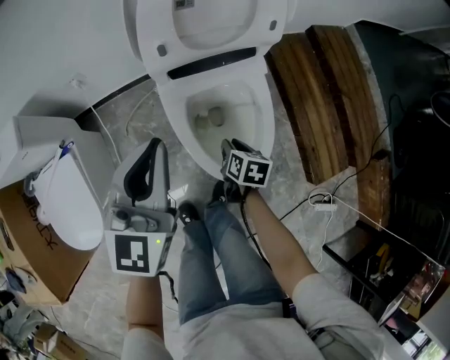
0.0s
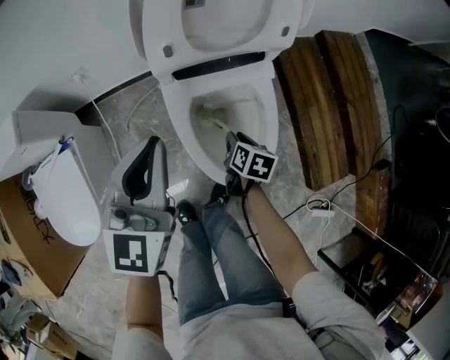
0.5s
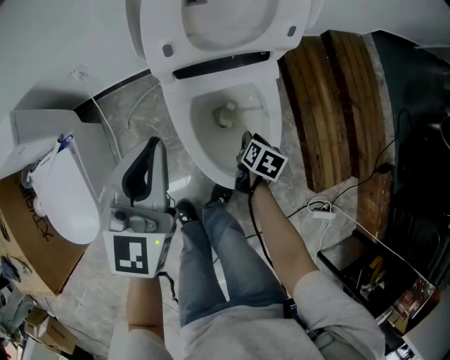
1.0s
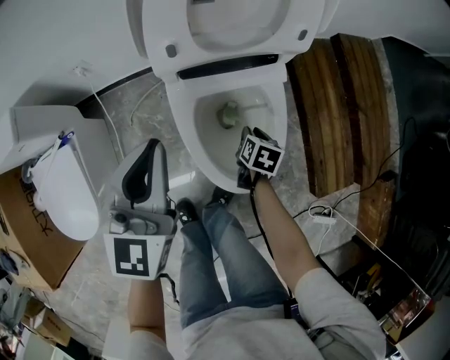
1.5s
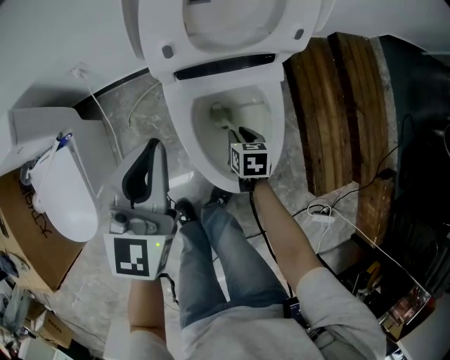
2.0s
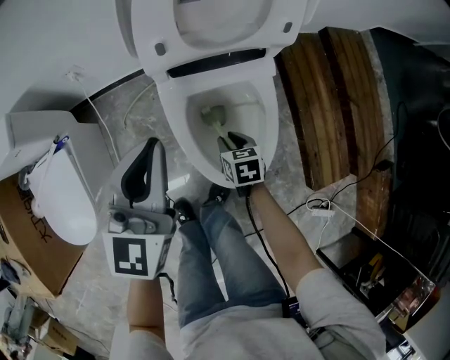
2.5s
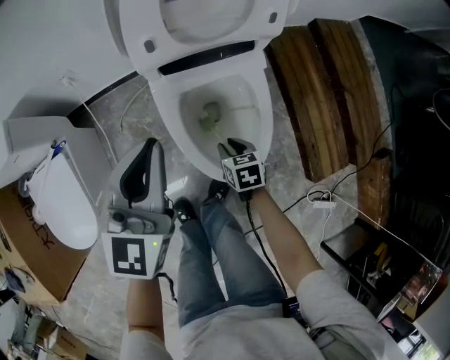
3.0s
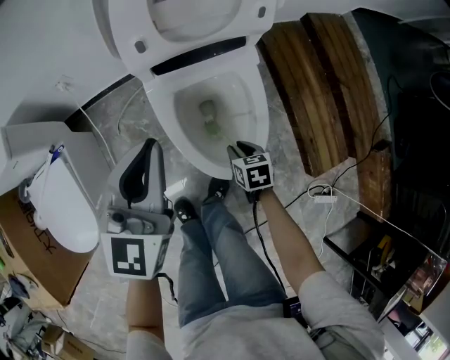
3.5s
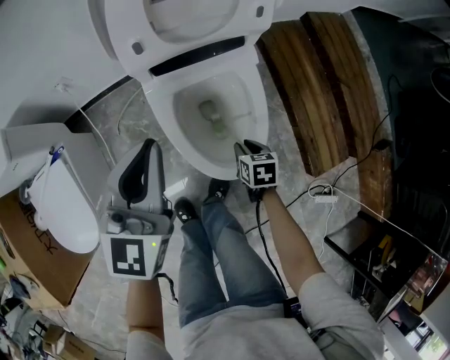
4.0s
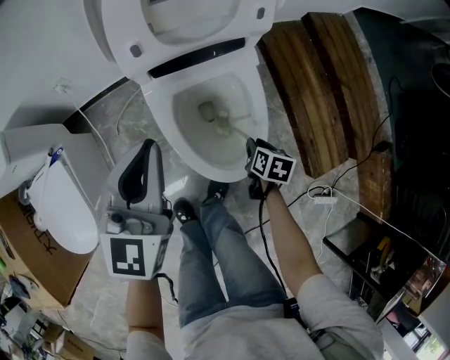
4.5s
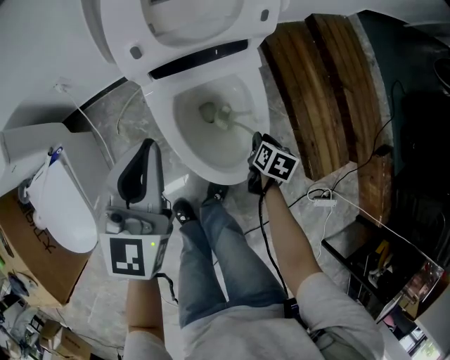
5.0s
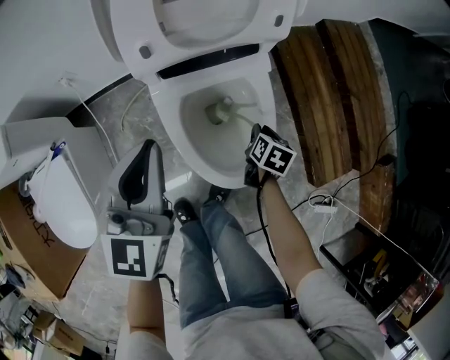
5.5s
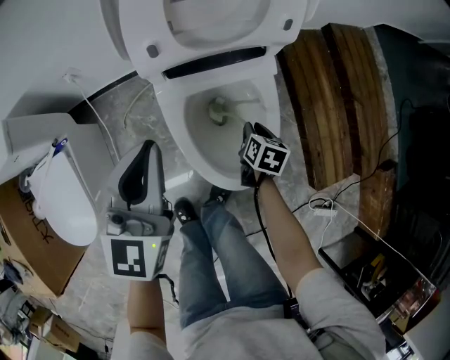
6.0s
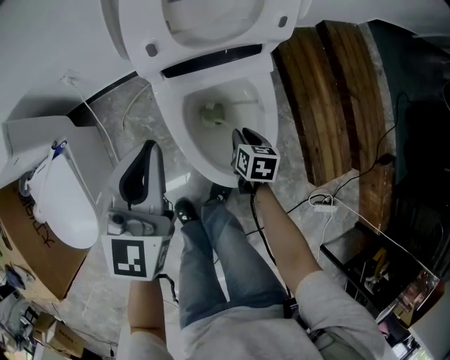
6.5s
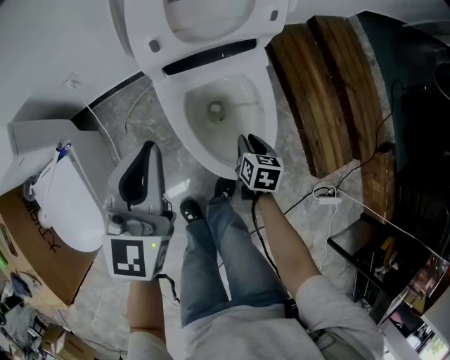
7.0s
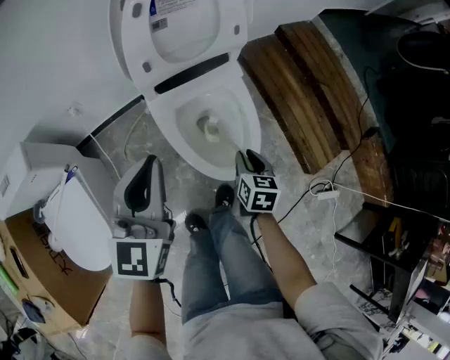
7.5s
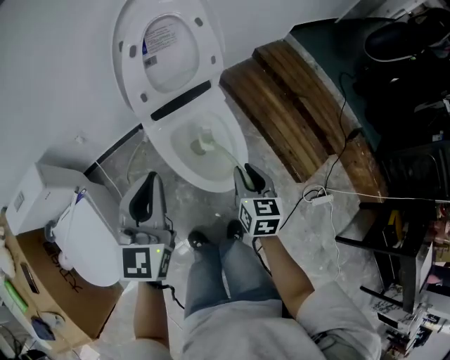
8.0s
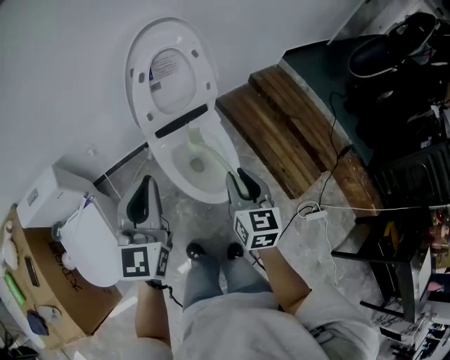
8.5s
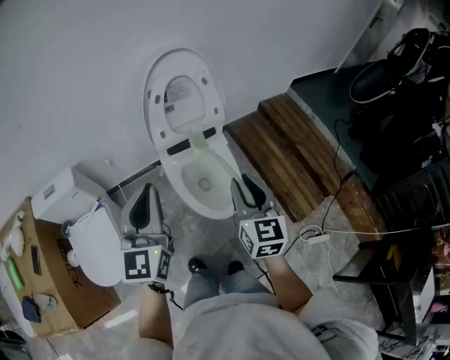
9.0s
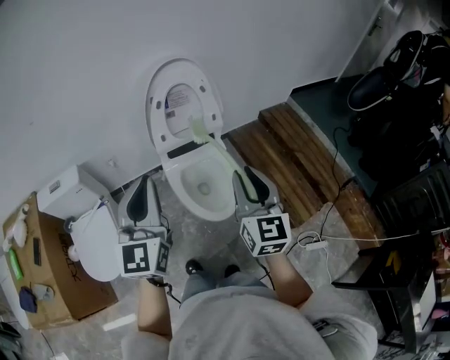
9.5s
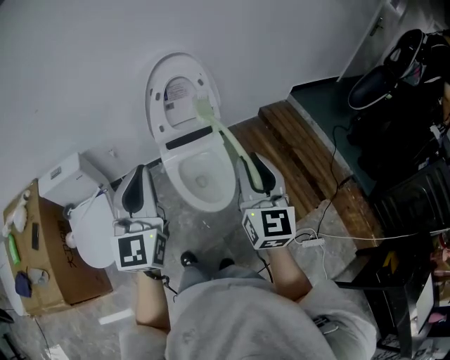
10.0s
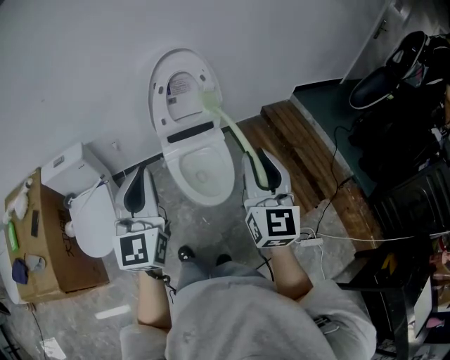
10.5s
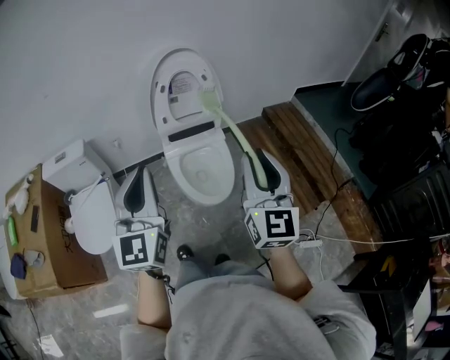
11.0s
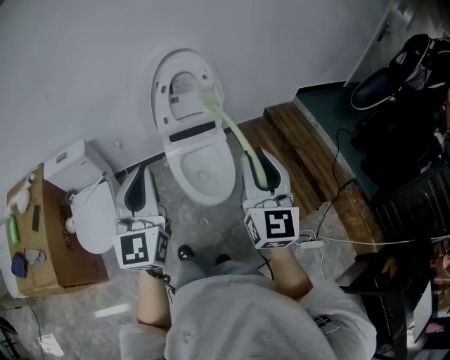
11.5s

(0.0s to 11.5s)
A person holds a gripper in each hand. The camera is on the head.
0.0s - 2.0s: The left gripper shifts by approximately 5 cm. The right gripper heads forward, covering some 5 cm, and swivels roughly 20 degrees.
2.0s - 4.0s: The right gripper goes about 10 cm backward and to the right.
4.0s - 6.0s: The right gripper travels forward by some 10 cm.
6.0s - 7.5s: The left gripper moves backward and upward, approximately 10 cm, while the right gripper travels backward and upward by approximately 20 cm.
7.5s - 9.5s: The left gripper goes some 30 cm upward and backward, and turns by about 20 degrees. Meanwhile the right gripper shifts some 50 cm upward, and points its fingers some 40 degrees further upward.
9.5s - 11.5s: The left gripper travels backward by about 10 cm. The right gripper moves backward, upward and to the right, approximately 15 cm.

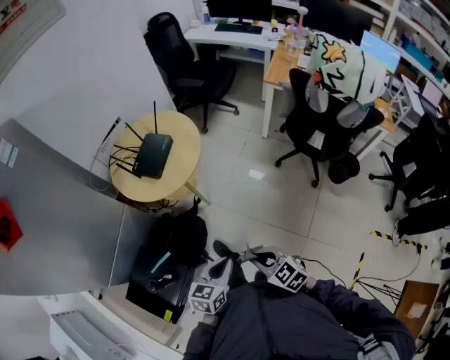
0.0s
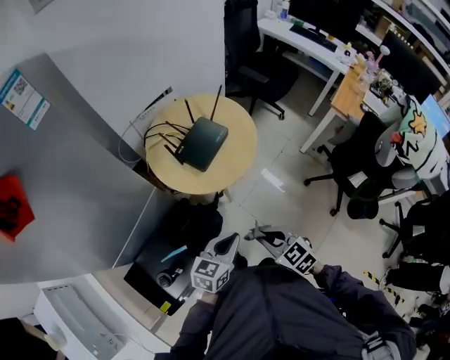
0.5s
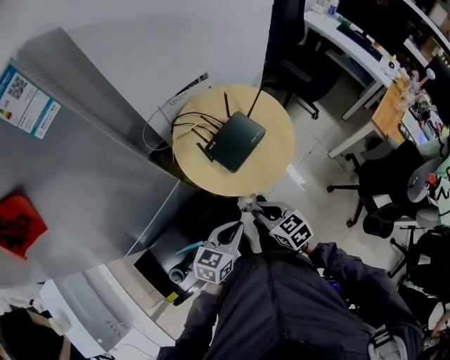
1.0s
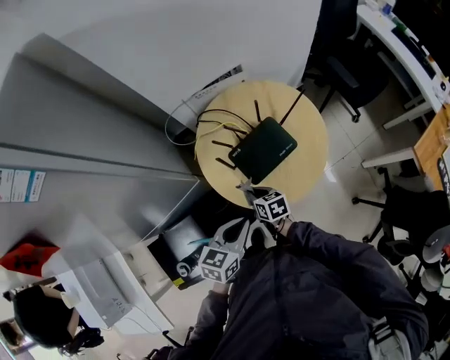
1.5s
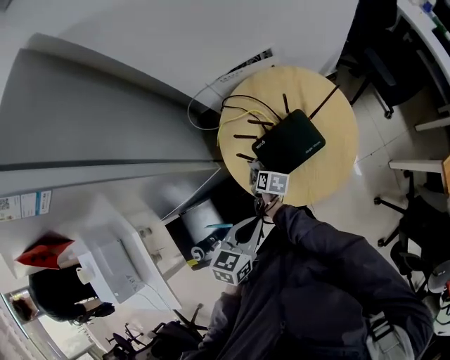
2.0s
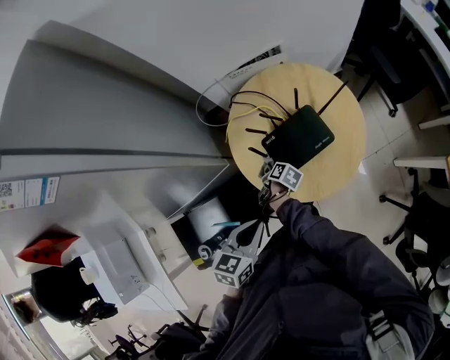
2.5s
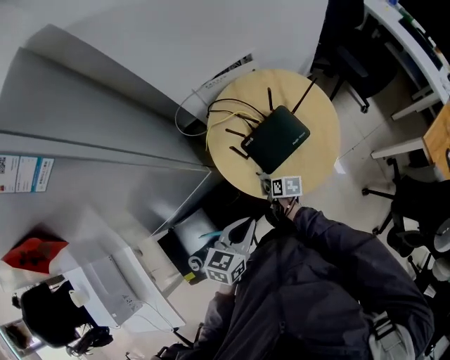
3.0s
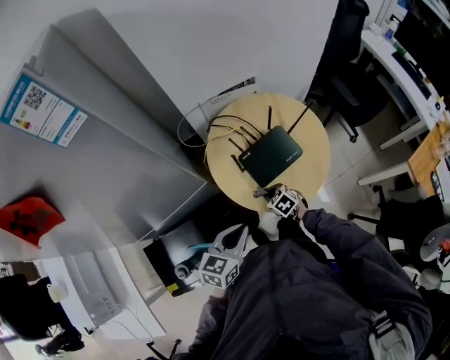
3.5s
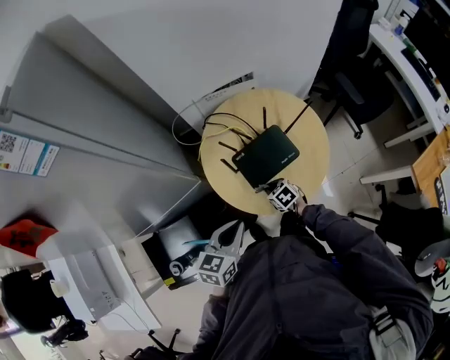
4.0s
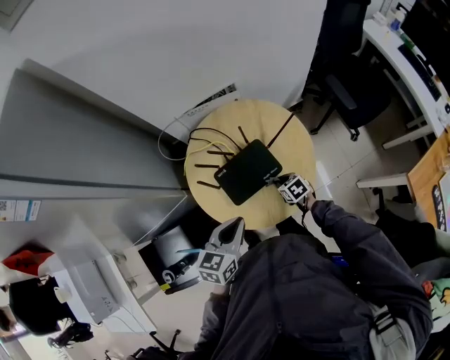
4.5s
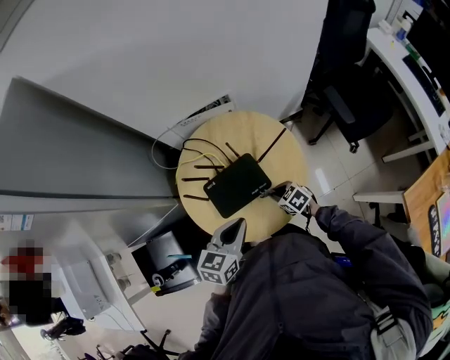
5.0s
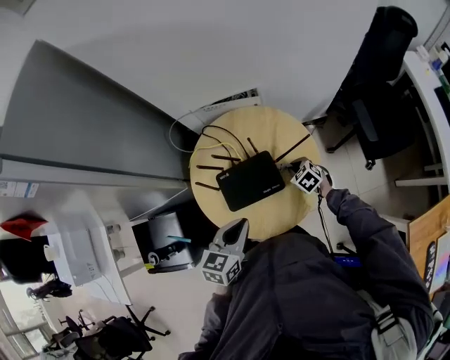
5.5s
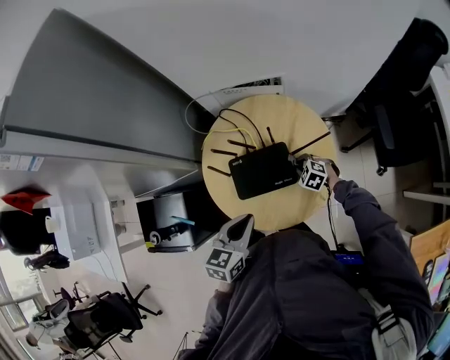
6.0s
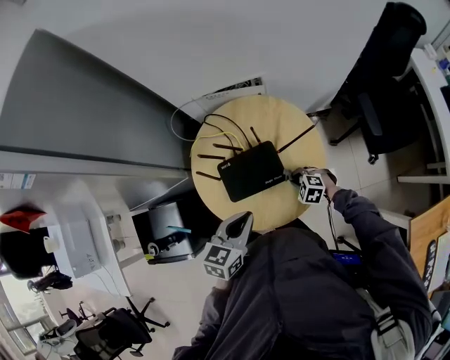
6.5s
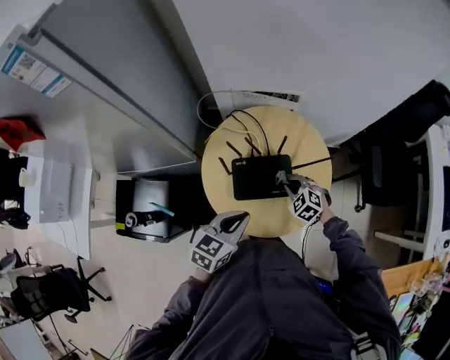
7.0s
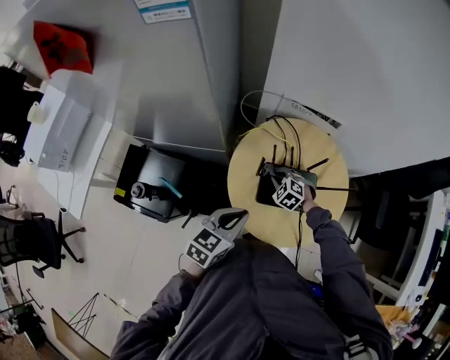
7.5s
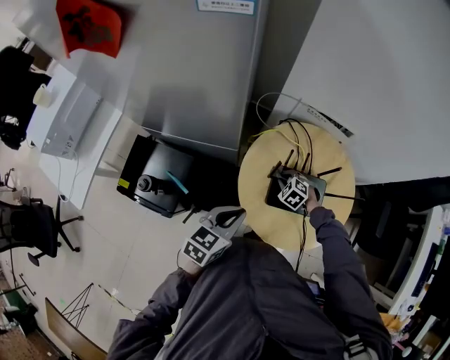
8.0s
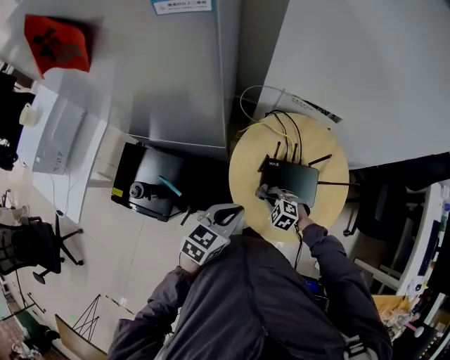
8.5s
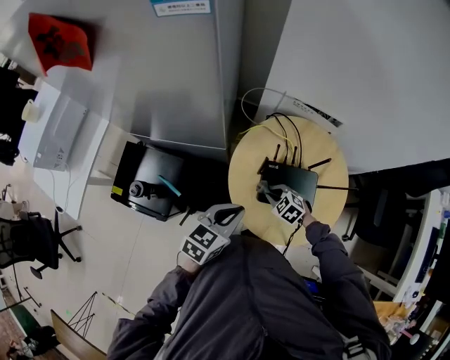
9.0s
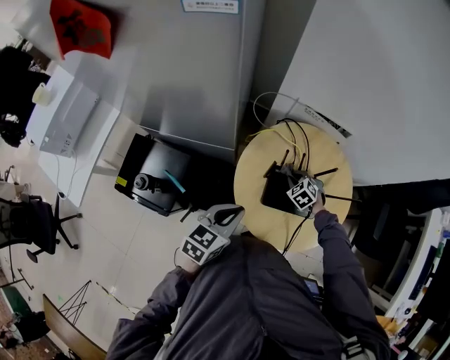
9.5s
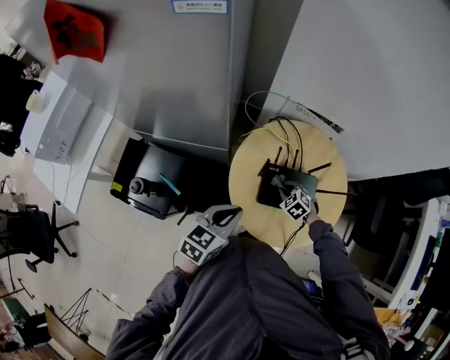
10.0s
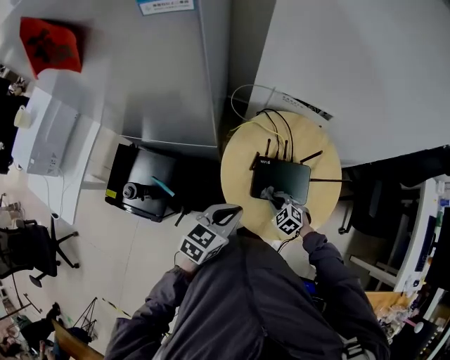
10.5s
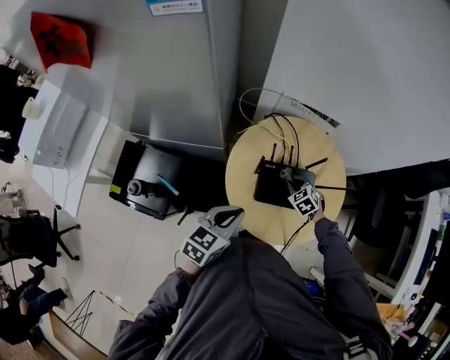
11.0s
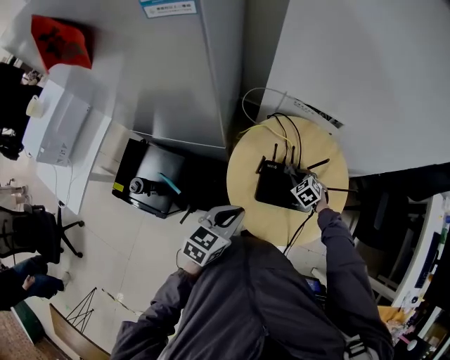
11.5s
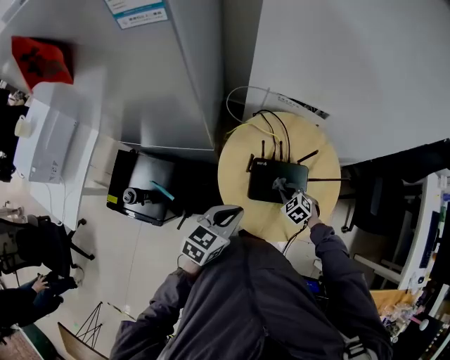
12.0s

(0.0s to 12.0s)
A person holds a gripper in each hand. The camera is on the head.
0.0s - 2.0s: The two grippers travel together, some 50 cm. The left gripper rotates roughly 40 degrees. Meanwhile the right gripper rotates around the line of its fingers by about 50 degrees, clockwise from behind.
2.0s - 4.0s: The right gripper travels to the right by some 10 cm, and rolls counterclockwise, seen from behind, by some 60 degrees.
4.0s - 6.0s: The right gripper is displaced to the right and forward by about 20 cm, and twists about 50 degrees counterclockwise, seen from behind; the left gripper shifts about 15 cm to the right.
6.0s - 8.0s: The grippers both shift to the left by approximately 20 cm.
8.0s - 10.0s: The right gripper moves forward and backward over approximately 15 cm, changing direction 2 times.
10.0s - 12.0s: The right gripper goes forward and backward, roughly 15 cm each way, reversing 2 times.

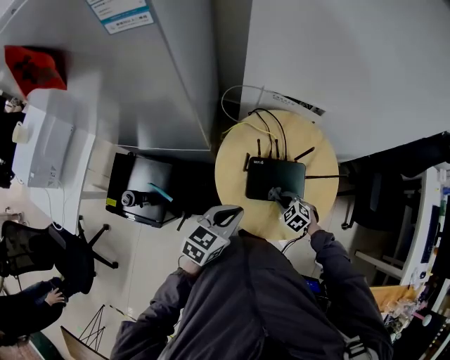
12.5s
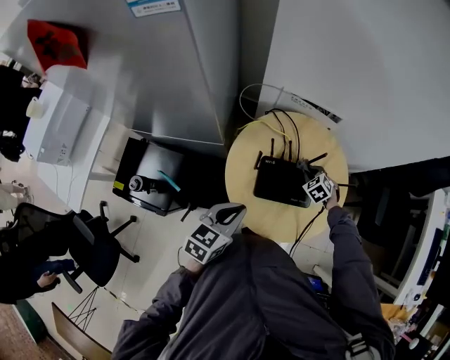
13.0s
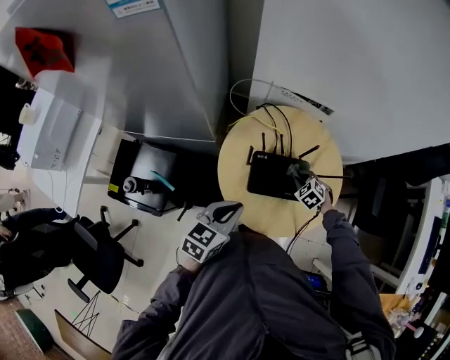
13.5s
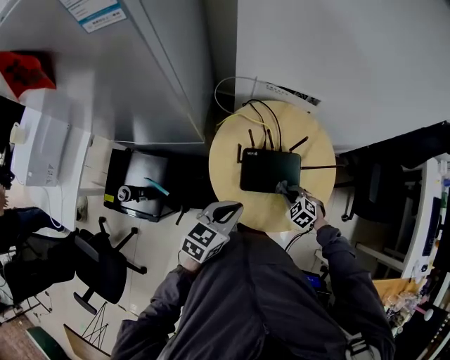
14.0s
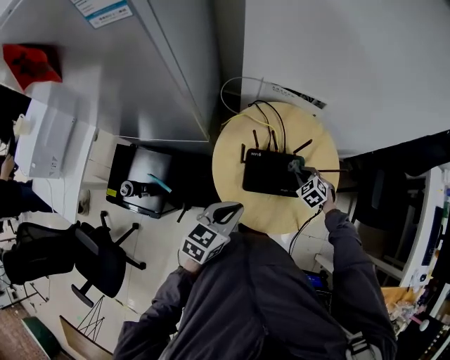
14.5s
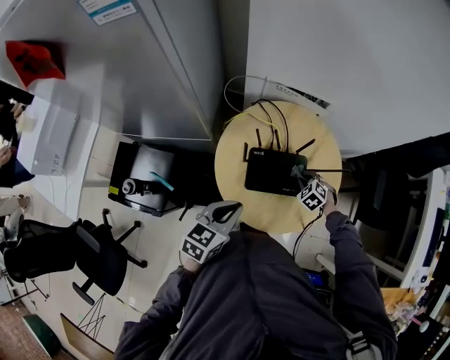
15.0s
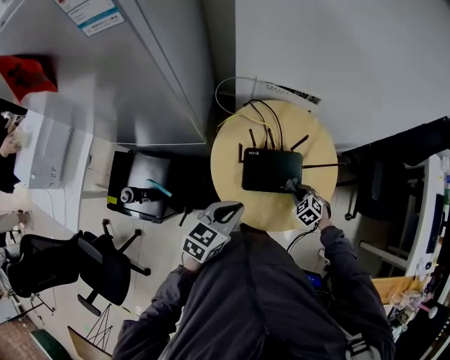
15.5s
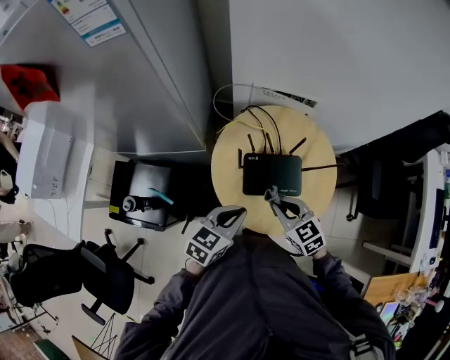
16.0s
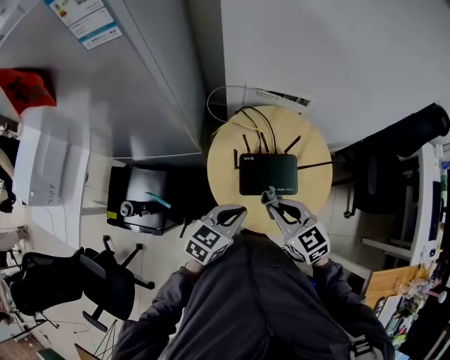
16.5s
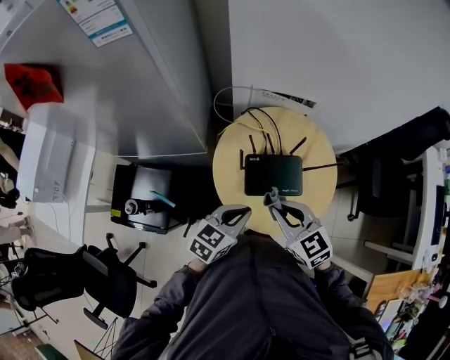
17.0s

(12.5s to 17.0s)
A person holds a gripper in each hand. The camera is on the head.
12.5s - 14.5s: The right gripper moves forward and backward over some 15 cm, changing direction 2 times.
14.5s - 17.0s: The right gripper heads upward, backward and to the left, covering some 30 cm, and tips its fingers upward by roughly 30 degrees.
